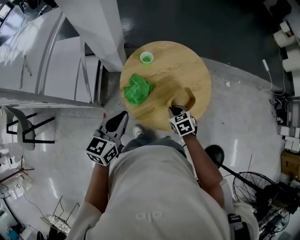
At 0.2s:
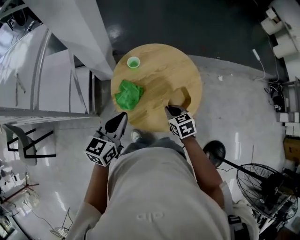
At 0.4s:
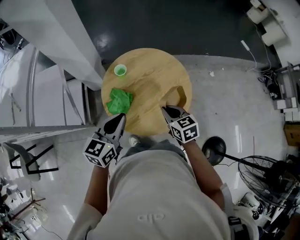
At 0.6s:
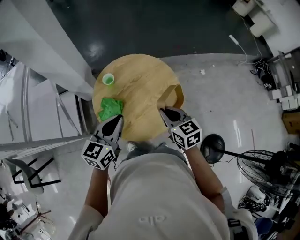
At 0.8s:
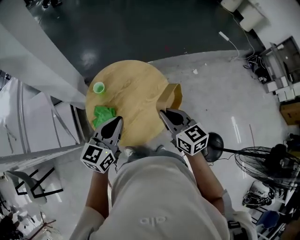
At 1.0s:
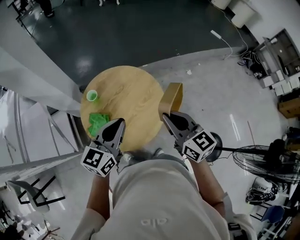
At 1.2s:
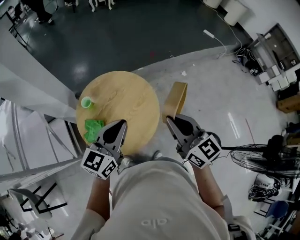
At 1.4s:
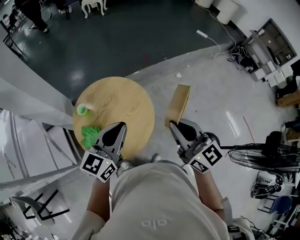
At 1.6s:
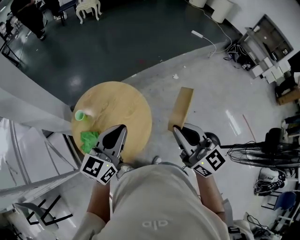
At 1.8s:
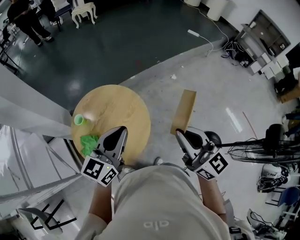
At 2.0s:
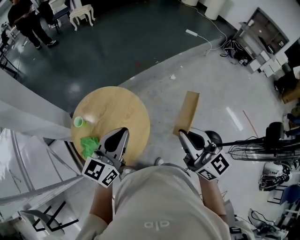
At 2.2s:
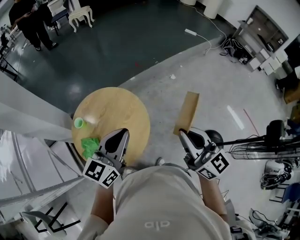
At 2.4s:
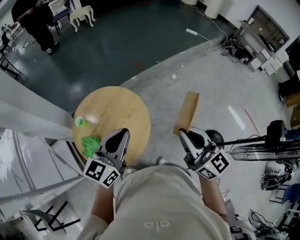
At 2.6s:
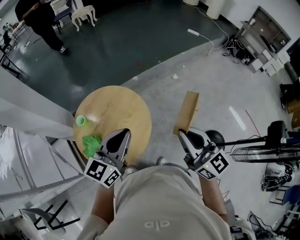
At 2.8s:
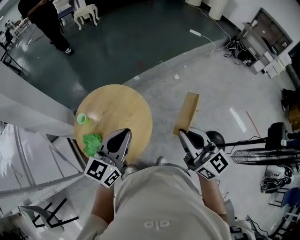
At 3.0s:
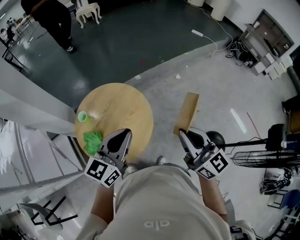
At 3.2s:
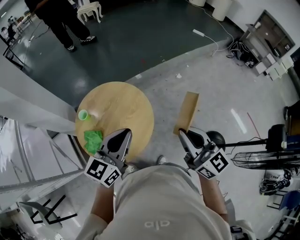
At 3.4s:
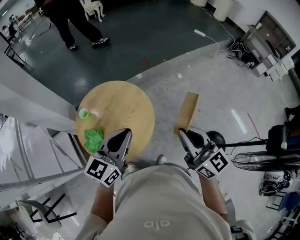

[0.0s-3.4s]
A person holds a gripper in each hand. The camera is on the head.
0.0s to 1.6s: The right gripper heads upward, covering approximately 40 cm, and tips its fingers upward by roughly 60 degrees. The left gripper changes place by approximately 35 cm, and rotates about 40 degrees.
1.6s to 3.4s: The grippers stay close to where they were, moving slightly.

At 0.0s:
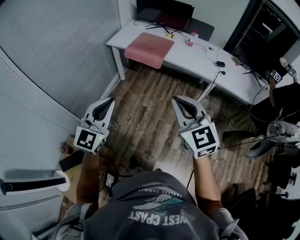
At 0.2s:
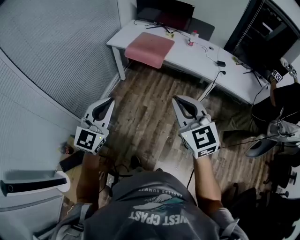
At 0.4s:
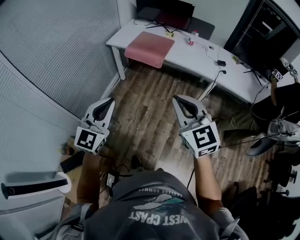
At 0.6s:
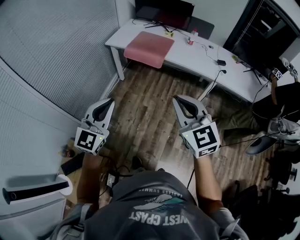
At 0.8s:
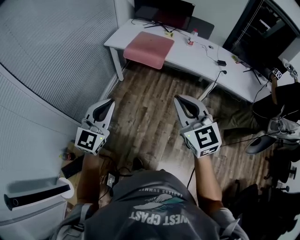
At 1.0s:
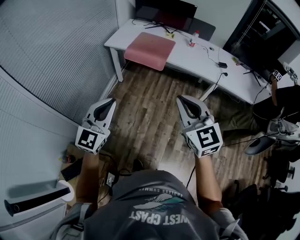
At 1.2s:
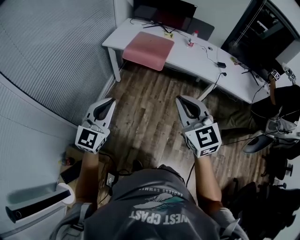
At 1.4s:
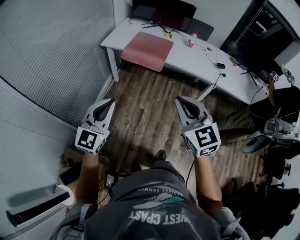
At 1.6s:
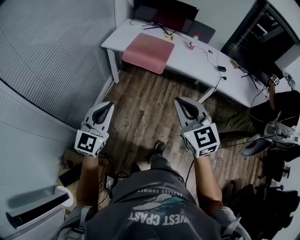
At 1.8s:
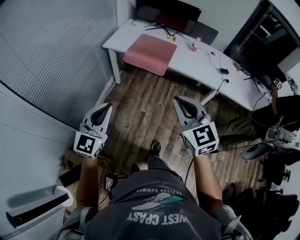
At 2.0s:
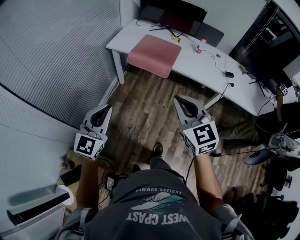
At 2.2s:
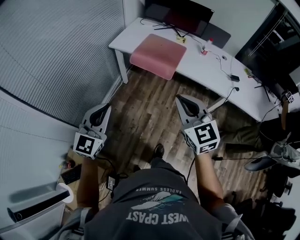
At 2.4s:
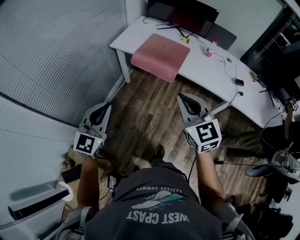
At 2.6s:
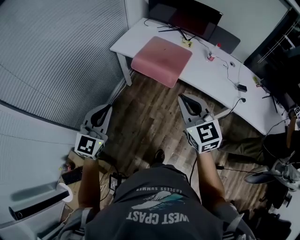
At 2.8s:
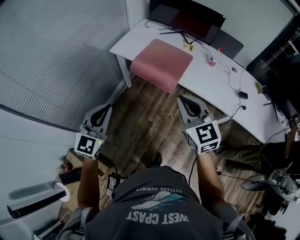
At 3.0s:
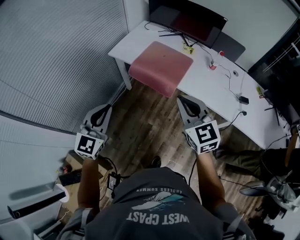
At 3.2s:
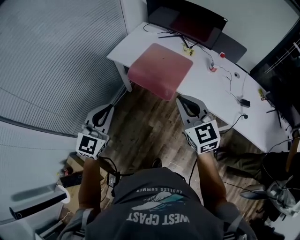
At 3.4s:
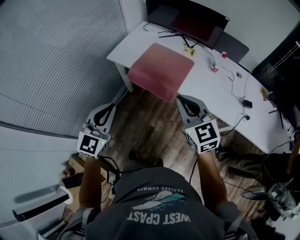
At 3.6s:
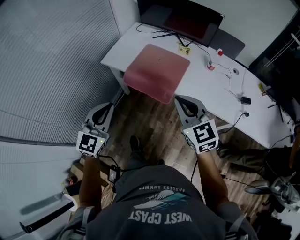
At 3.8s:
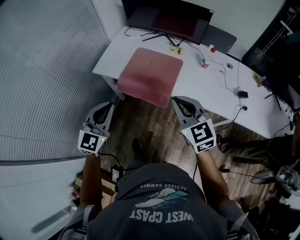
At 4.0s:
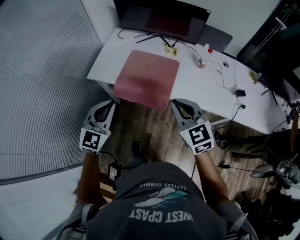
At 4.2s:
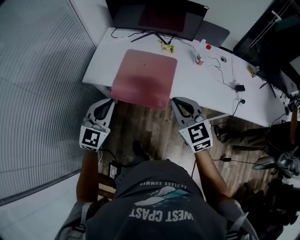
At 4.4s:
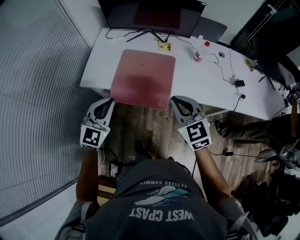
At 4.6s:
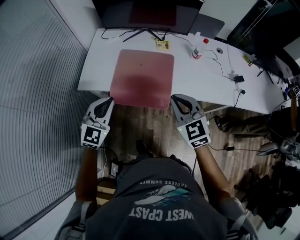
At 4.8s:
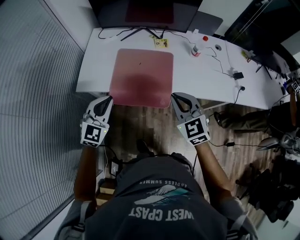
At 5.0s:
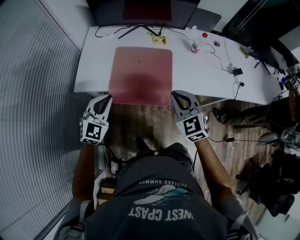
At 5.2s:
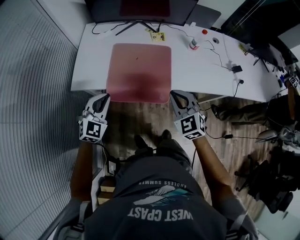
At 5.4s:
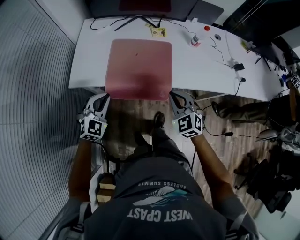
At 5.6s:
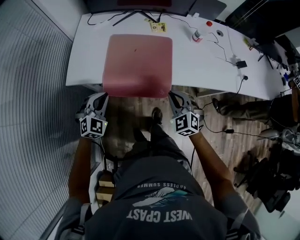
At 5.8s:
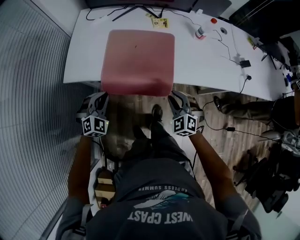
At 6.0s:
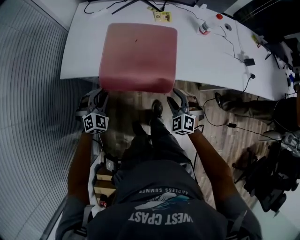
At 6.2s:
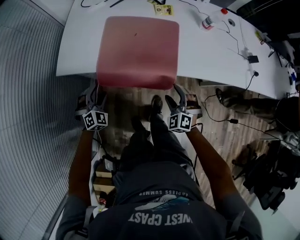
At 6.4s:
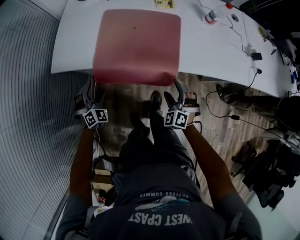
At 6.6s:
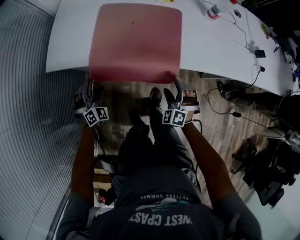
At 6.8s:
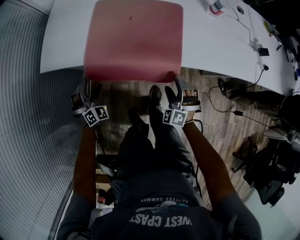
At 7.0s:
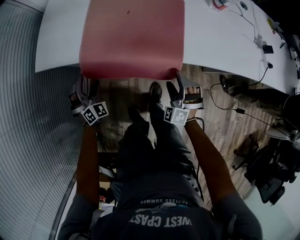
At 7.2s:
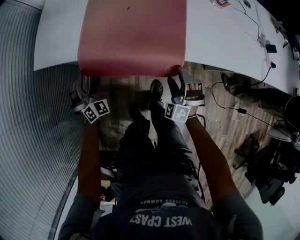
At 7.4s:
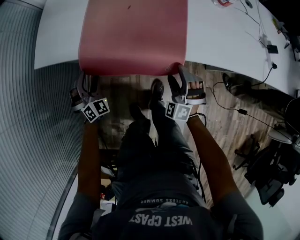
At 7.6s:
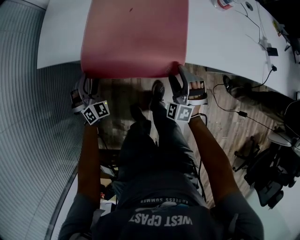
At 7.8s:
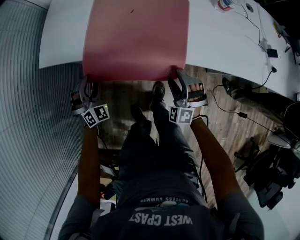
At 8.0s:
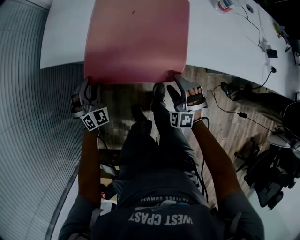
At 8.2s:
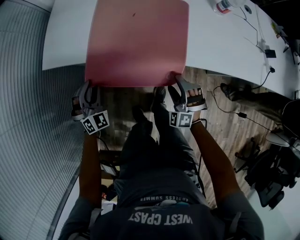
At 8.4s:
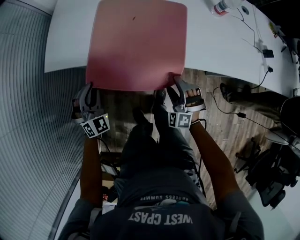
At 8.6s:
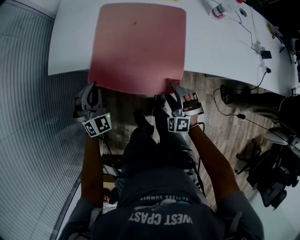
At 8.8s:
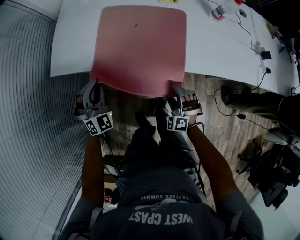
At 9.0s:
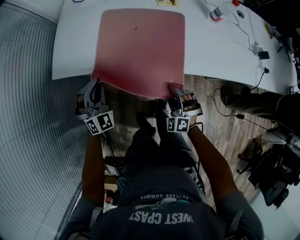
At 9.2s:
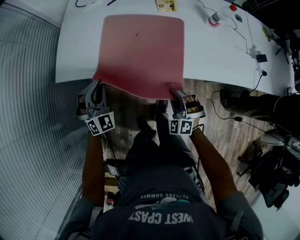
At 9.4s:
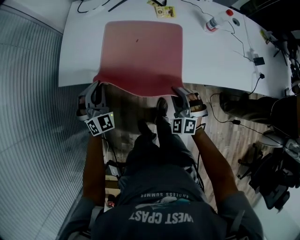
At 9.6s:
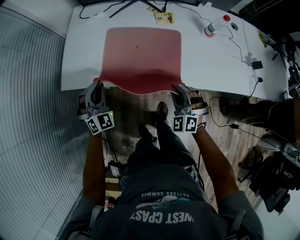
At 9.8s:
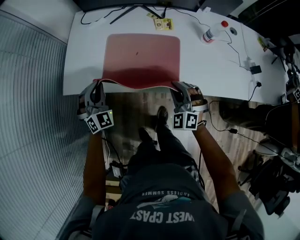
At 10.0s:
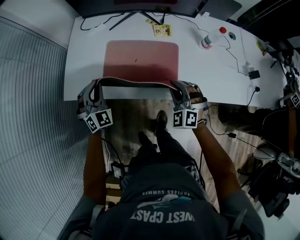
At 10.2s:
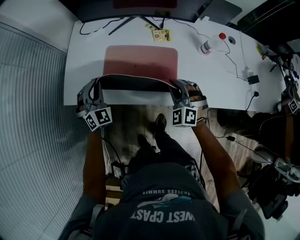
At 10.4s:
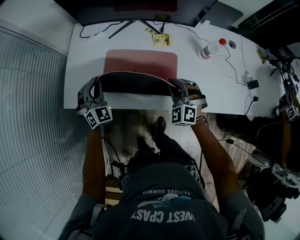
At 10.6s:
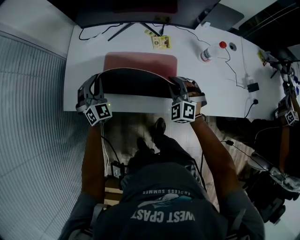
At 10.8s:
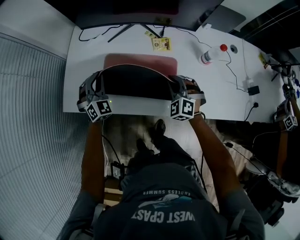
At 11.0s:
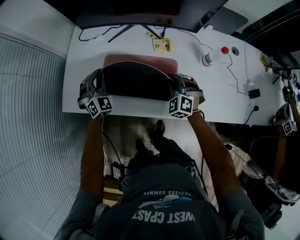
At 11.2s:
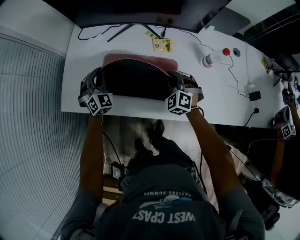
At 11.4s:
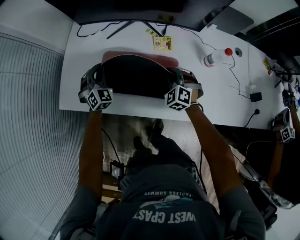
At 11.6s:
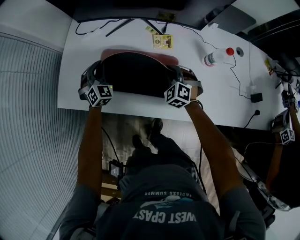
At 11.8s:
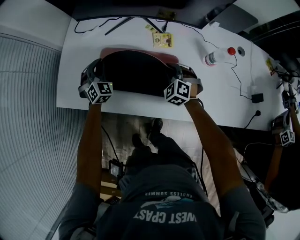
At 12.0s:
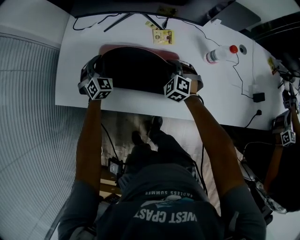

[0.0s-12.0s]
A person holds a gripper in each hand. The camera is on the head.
0.0s to 1.6s: The left gripper travels to the left, forward and downward by some 15 cm. Meanwhile the right gripper travels forward and to the left by roughly 10 cm.
1.6s to 3.0s: Both grippers move forward, some 25 cm.
3.0s to 4.4s: The right gripper moves forward and downward, approximately 20 cm. The left gripper goes approximately 25 cm forward, and rotates some 30 degrees.
4.4s to 6.0s: The grippers both shift downward by approximately 25 cm. The right gripper swivels some 40 degrees, and opens its fingers; the left gripper swivels about 40 degrees.
6.0s to 7.6s: The grippers both shift downward by roughly 10 cm. The left gripper changes its angle by roughly 20 degrees, and opens up; the right gripper swivels approximately 20 degrees.
7.6s to 9.0s: The left gripper moves upward, roughly 10 cm, and closes its fingers. The right gripper closes.
9.0s to 10.4s: Both grippers travel together forward and upward, about 20 cm. The right gripper closes up.
10.4s to 12.0s: The two grippers go about 15 cm forward and downward.

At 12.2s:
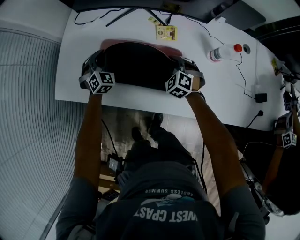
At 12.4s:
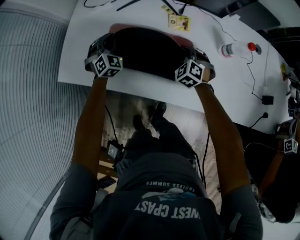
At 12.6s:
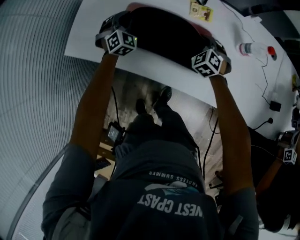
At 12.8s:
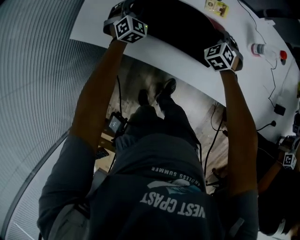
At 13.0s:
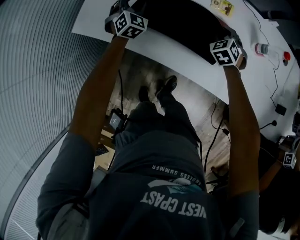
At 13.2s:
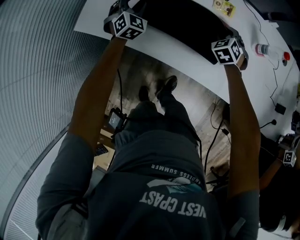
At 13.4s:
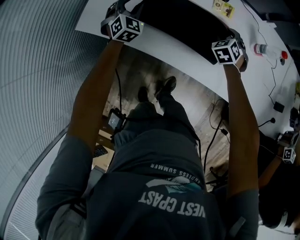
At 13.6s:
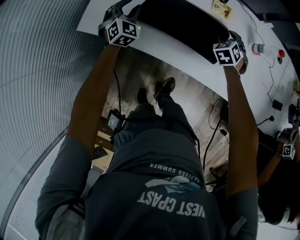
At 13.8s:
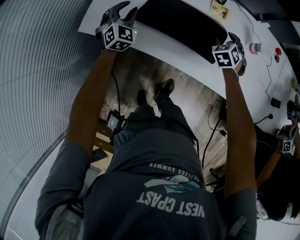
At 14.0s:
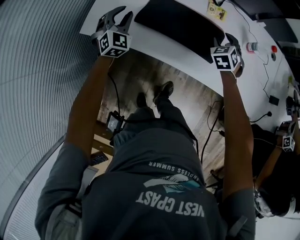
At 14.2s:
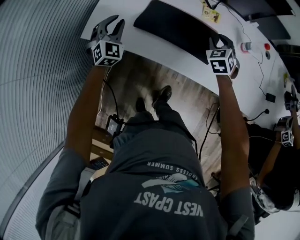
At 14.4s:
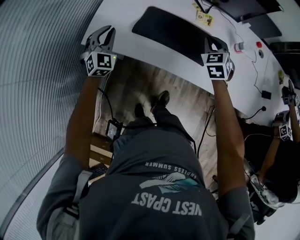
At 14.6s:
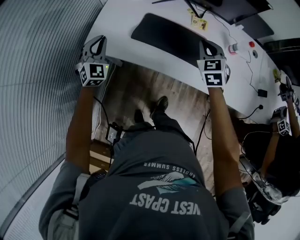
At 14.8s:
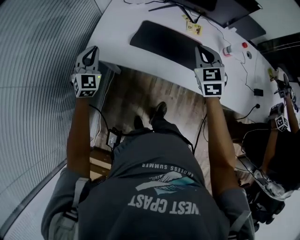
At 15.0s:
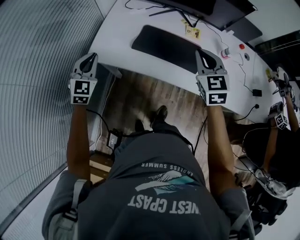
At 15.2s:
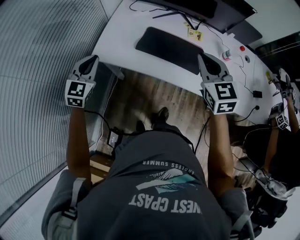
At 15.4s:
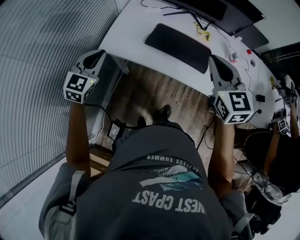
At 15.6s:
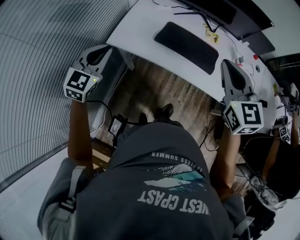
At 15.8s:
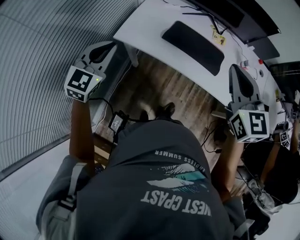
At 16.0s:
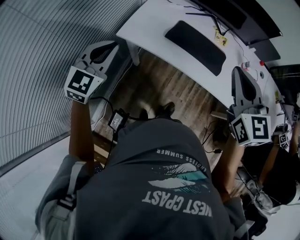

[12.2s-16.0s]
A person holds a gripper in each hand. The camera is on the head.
12.2s to 13.4s: The left gripper heads to the left, covering roughly 5 cm, and opens up.
13.4s to 14.8s: The right gripper goes about 30 cm upward, backward and to the left, turns by approximately 30 degrees, and closes up. The left gripper shifts roughly 25 cm backward, upward and to the left, and closes.
14.8s to 16.0s: The left gripper heads backward and upward, covering roughly 20 cm. Meanwhile the right gripper travels backward, upward and to the left by some 25 cm, and changes its angle by approximately 20 degrees.

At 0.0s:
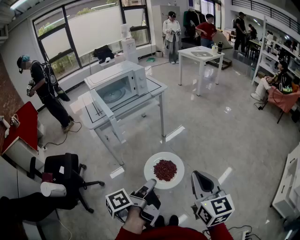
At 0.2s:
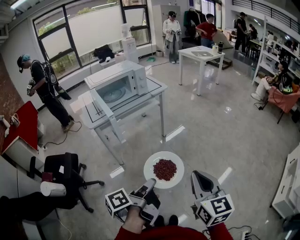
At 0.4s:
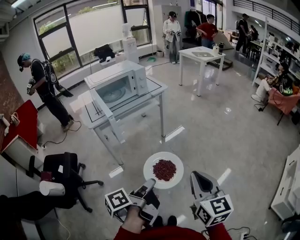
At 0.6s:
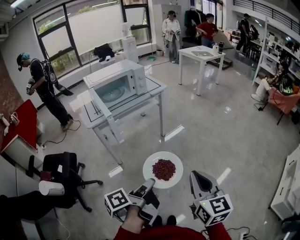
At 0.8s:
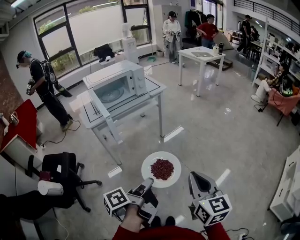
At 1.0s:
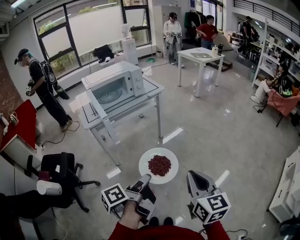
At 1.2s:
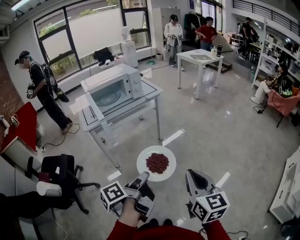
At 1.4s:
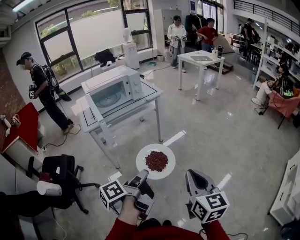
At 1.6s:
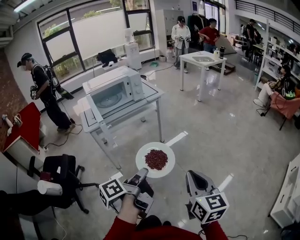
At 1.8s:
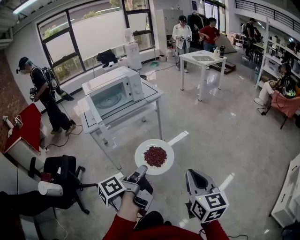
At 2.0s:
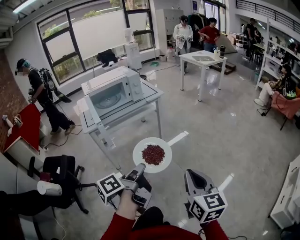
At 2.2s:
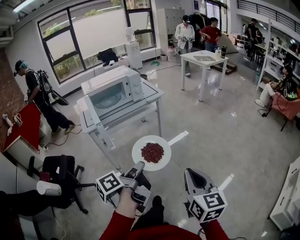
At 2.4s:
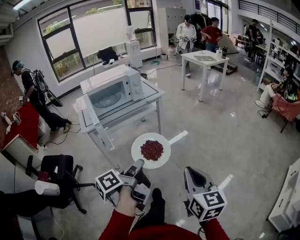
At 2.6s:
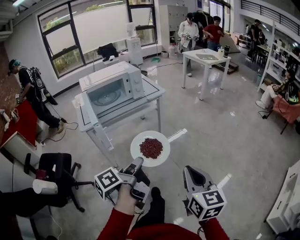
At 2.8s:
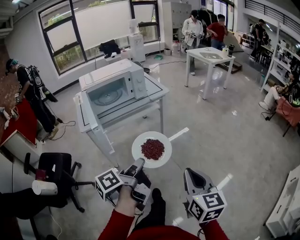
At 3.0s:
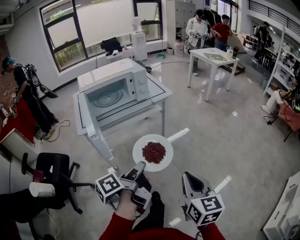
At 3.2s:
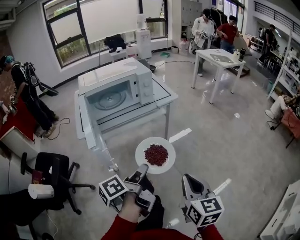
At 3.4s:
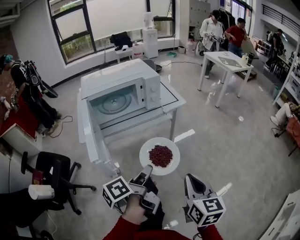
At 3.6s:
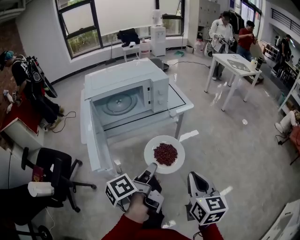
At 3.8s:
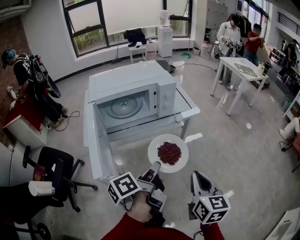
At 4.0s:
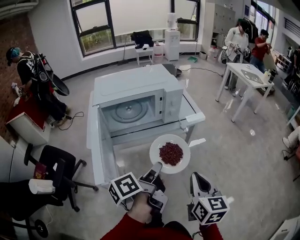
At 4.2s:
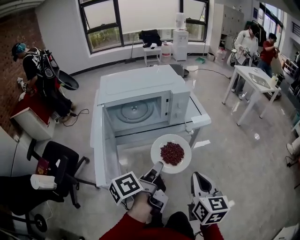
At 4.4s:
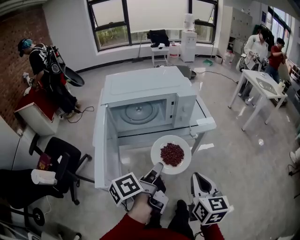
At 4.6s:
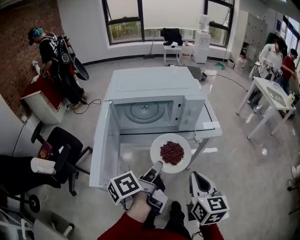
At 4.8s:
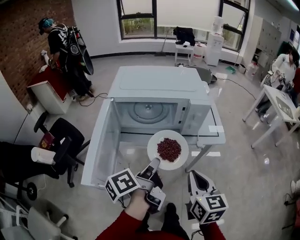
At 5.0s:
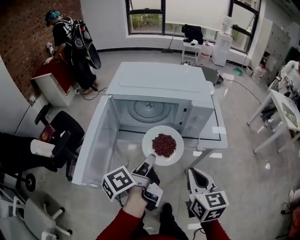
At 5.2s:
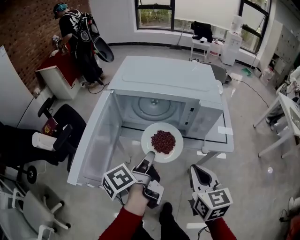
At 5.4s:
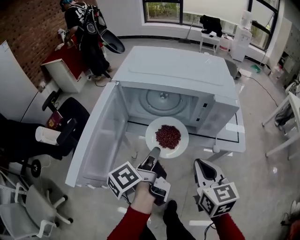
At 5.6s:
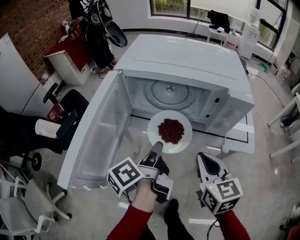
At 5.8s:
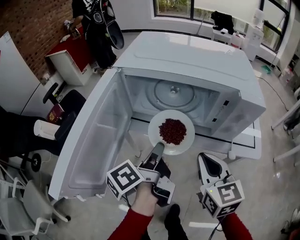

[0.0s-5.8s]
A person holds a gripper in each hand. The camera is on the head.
0.0s to 1.4s: The left gripper shifts some 5 cm forward. The right gripper ends up roughly 5 cm from where it was.
1.4s to 2.8s: The two grippers go roughly 10 cm forward.
2.8s to 4.4s: Both grippers move forward, roughly 25 cm.
4.4s to 5.8s: The right gripper ends up some 20 cm from where it was, and changes its angle by some 40 degrees, while the left gripper ends up some 15 cm from where it was, and turns by about 30 degrees.
